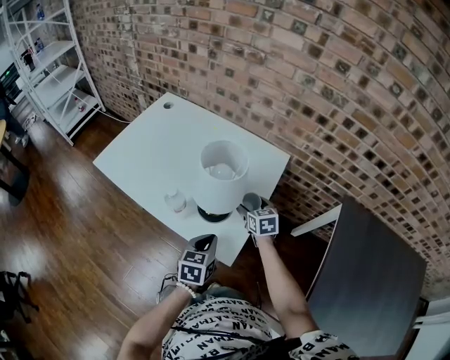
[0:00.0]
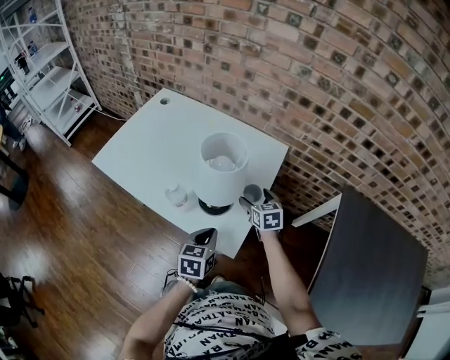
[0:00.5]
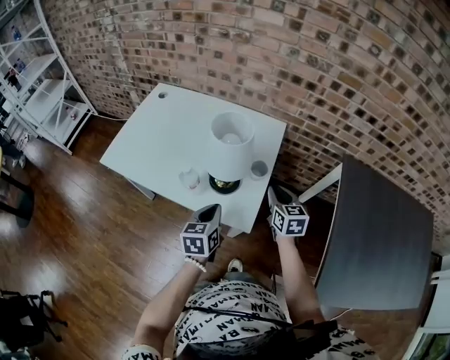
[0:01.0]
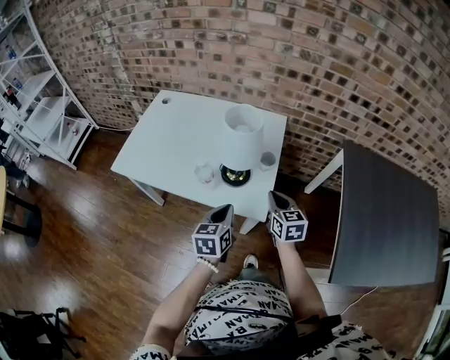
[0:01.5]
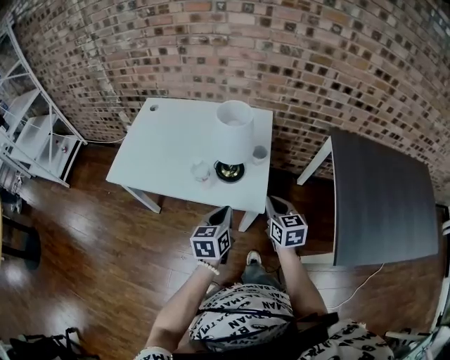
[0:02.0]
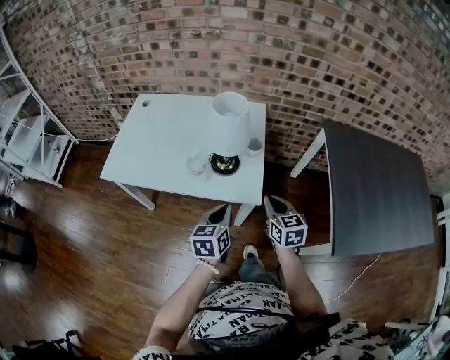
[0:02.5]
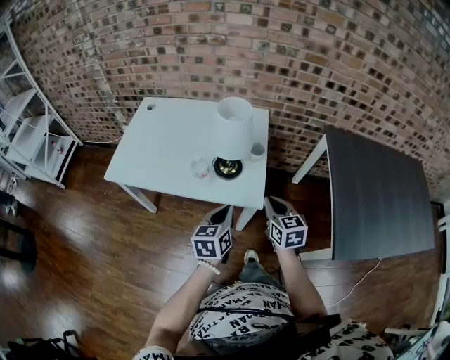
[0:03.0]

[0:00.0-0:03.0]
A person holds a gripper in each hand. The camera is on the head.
0.0 to 1.5 s: The right gripper goes approximately 25 cm backward and upward, swivels roughly 20 degrees, and closes up. Meanwhile the left gripper travels upward, backward and to the left by approximately 10 cm.
1.5 to 3.0 s: The right gripper travels backward by some 10 cm.

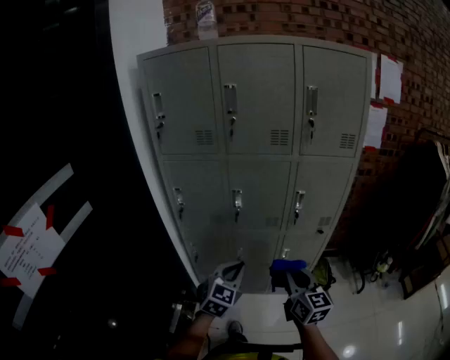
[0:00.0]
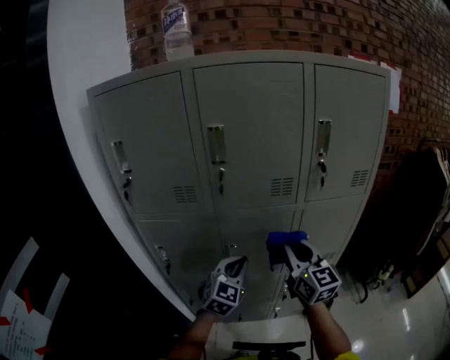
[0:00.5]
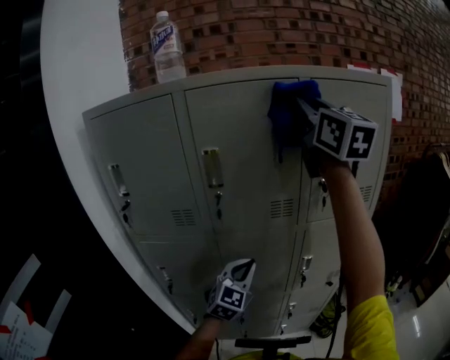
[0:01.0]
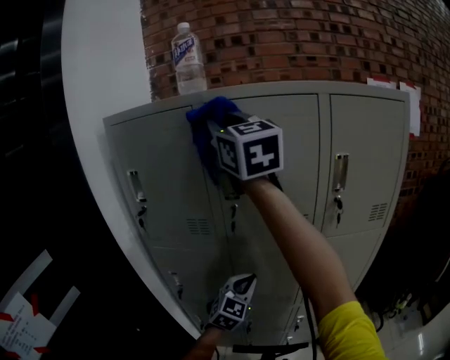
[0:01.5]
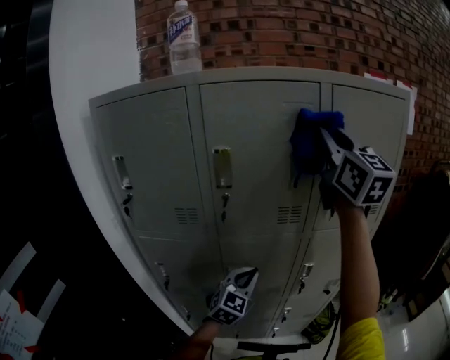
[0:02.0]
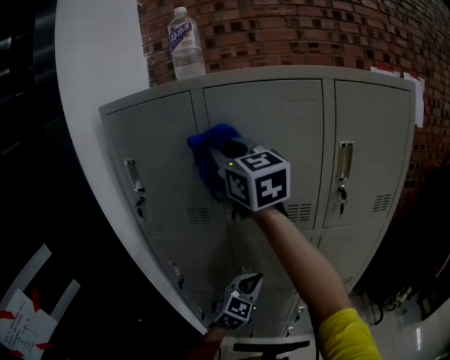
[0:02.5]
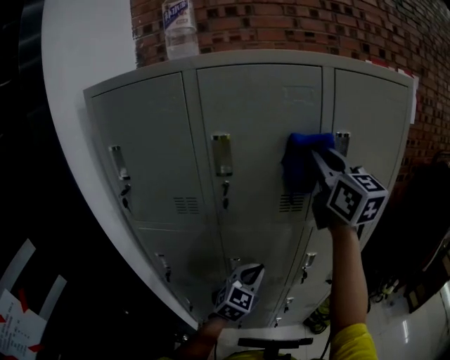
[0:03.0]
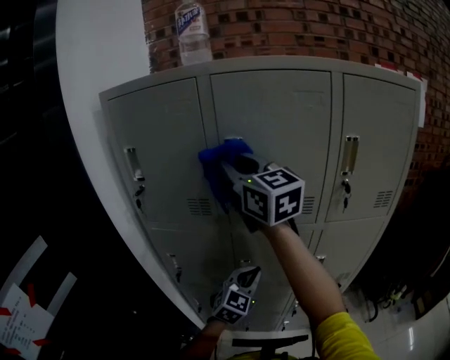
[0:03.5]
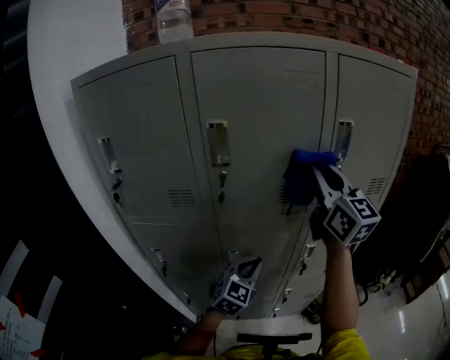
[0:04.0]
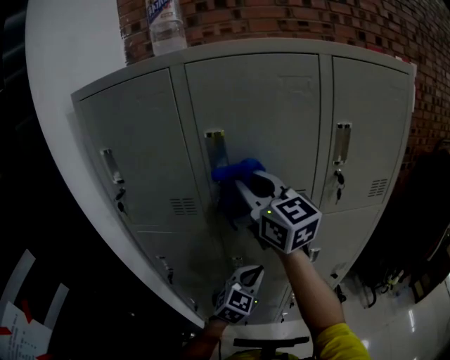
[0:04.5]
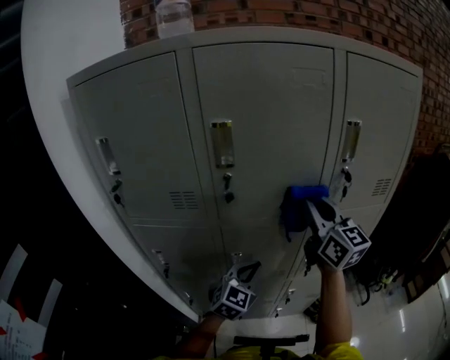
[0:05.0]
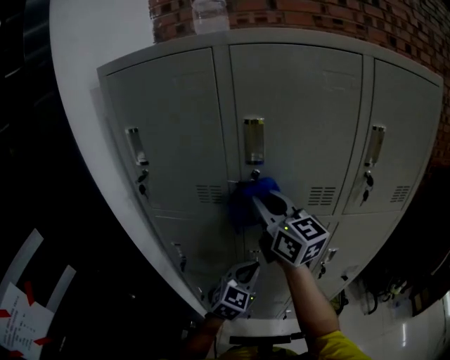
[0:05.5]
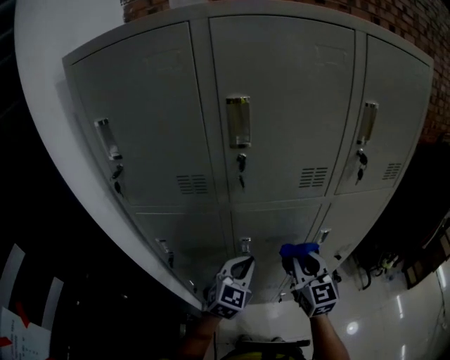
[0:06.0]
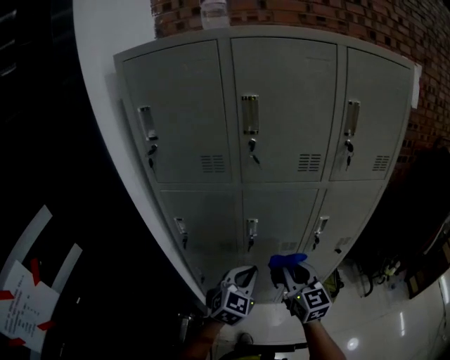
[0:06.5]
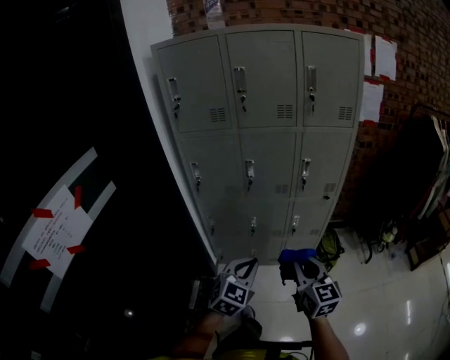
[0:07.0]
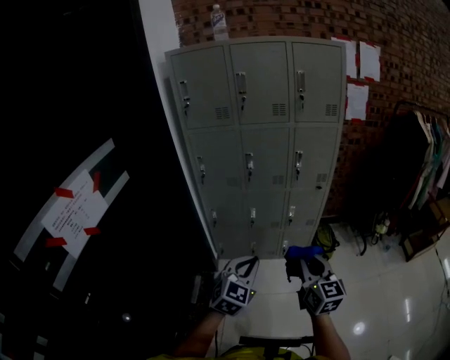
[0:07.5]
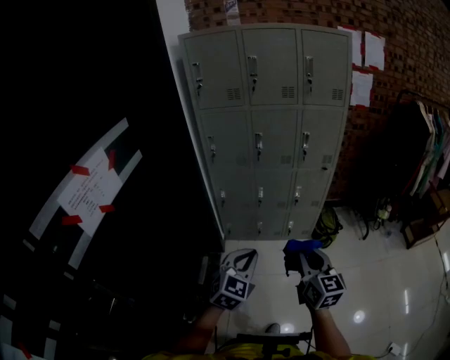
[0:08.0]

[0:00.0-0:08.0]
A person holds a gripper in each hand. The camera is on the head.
0.0 to 2.0 s: The right gripper heads upward and forward, covering about 60 cm, and turns by approximately 30 degrees. The left gripper is displaced forward by some 30 cm.
2.0 to 4.0 s: The right gripper goes left and right, about 25 cm each way, reversing 3 times.
4.0 to 6.0 s: The left gripper travels to the left by approximately 5 cm; the right gripper heads downward, covering some 30 cm, and turns by approximately 20 degrees.
6.0 to 8.0 s: The two grippers travel together, backward, approximately 70 cm.

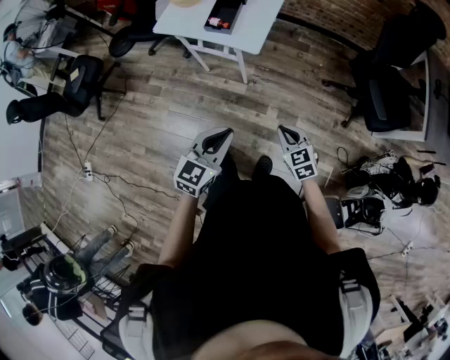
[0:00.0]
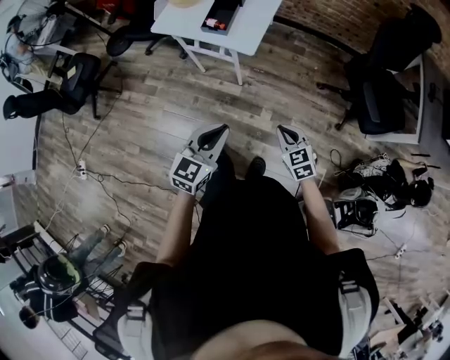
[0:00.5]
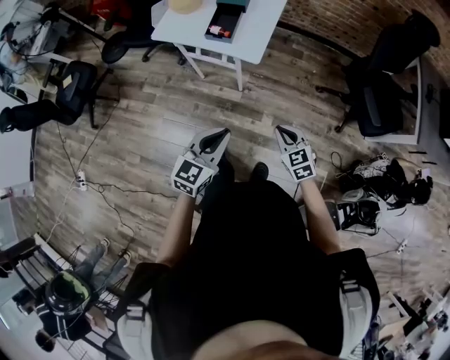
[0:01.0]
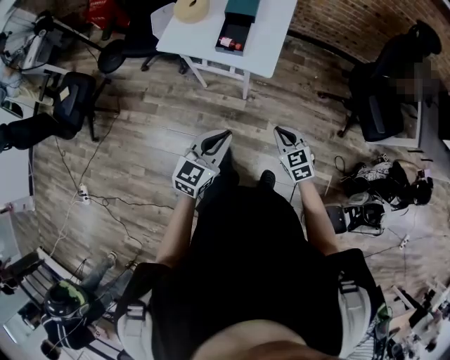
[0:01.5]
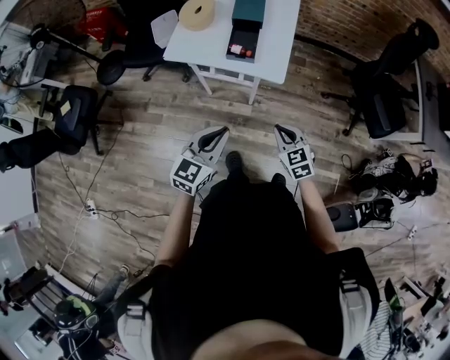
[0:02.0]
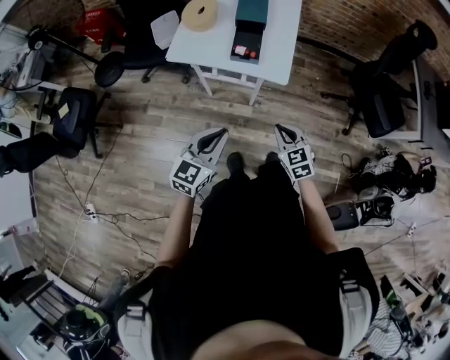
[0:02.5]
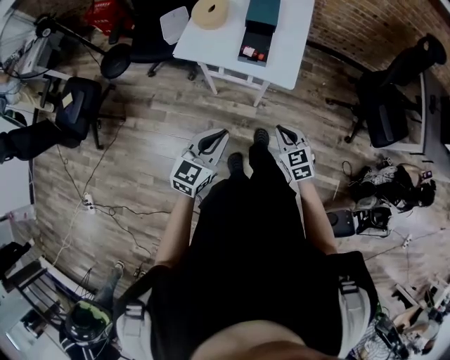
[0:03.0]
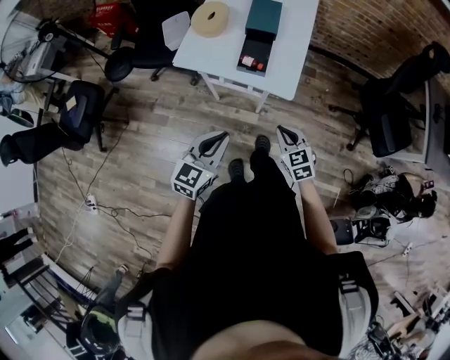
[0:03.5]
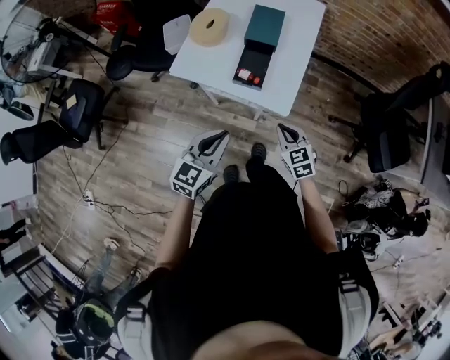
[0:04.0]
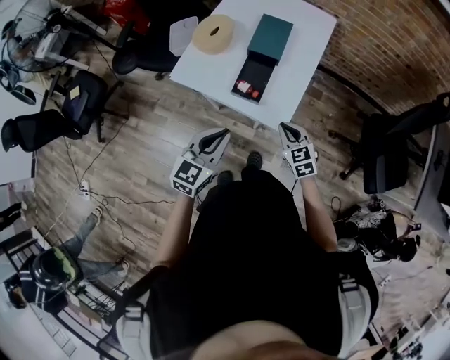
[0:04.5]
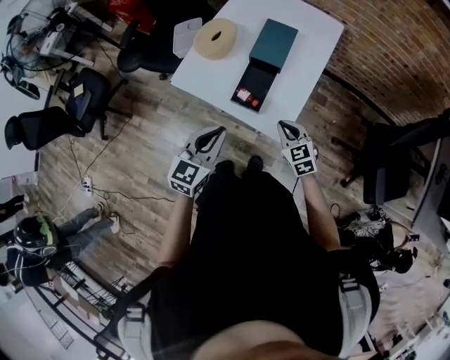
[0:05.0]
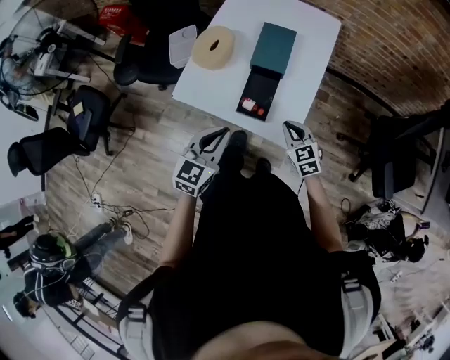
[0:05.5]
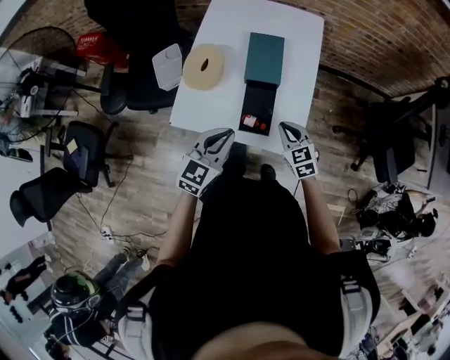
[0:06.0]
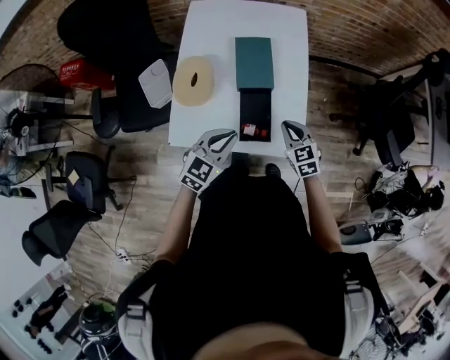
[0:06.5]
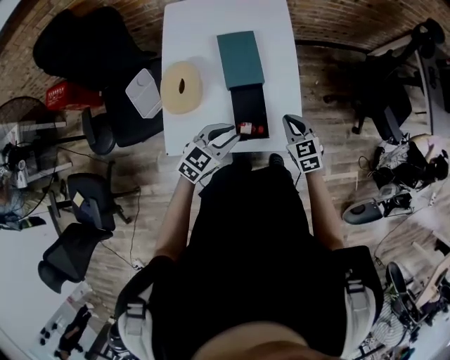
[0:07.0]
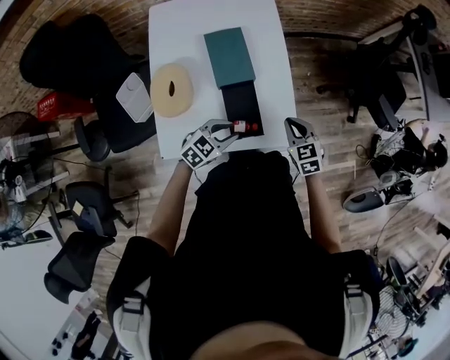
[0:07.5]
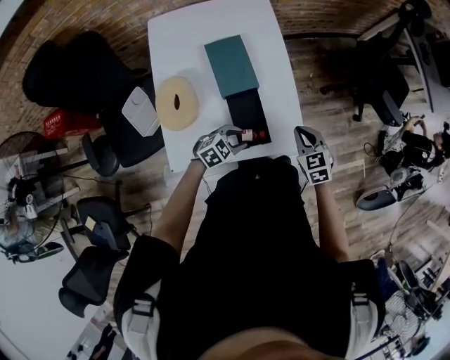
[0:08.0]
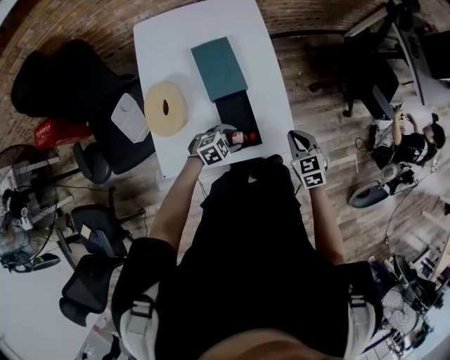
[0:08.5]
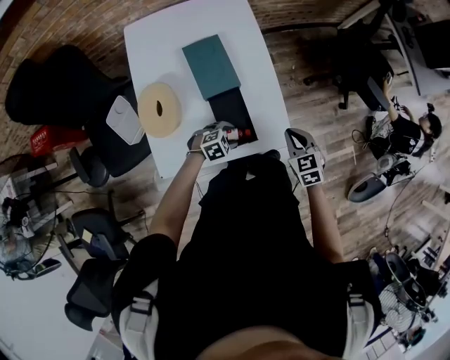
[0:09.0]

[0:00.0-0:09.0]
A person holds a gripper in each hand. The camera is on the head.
0.0 to 2.0 s: Both grippers travel together to the left and forward, approximately 25 cm.
2.0 to 4.5 s: The two grippers go approximately 25 cm forward.
4.5 to 7.0 s: The right gripper ends up roughly 15 cm from where it was, and changes its angle by about 30 degrees. The left gripper ends up about 25 cm from where it was, and swivels roughly 50 degrees.
7.0 to 9.0 s: The right gripper shifts by some 10 cm. The left gripper moves downward, roughly 20 cm, rotates approximately 50 degrees, and opens its fingers.

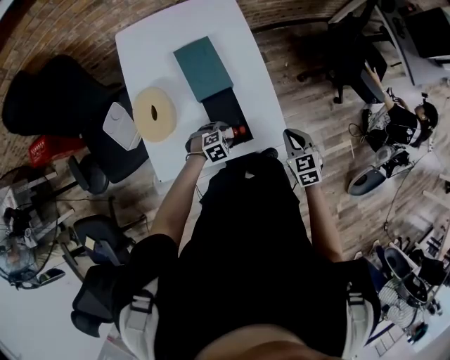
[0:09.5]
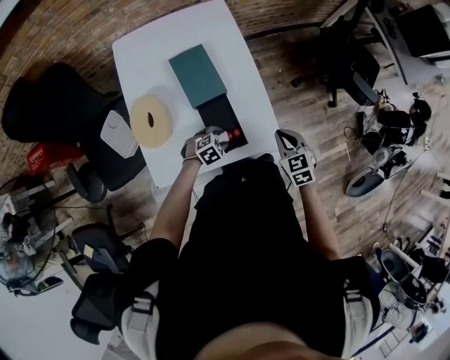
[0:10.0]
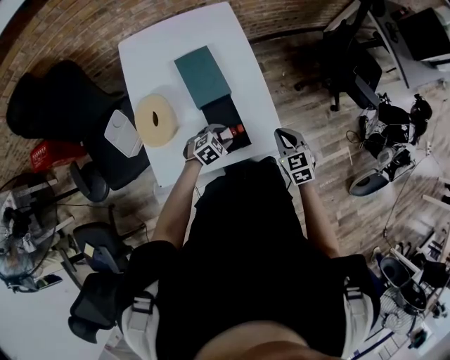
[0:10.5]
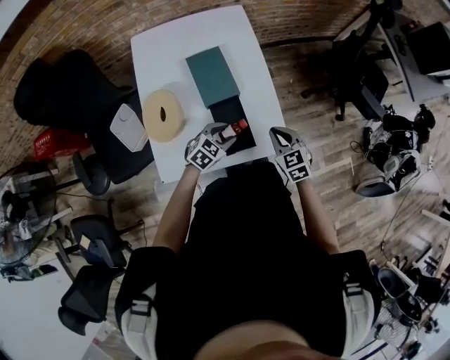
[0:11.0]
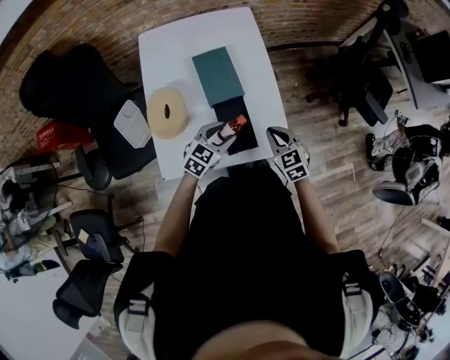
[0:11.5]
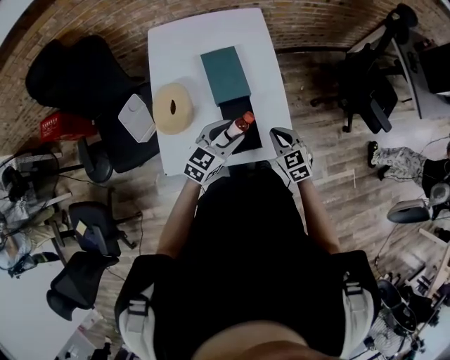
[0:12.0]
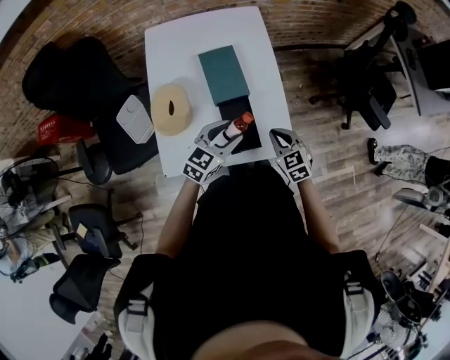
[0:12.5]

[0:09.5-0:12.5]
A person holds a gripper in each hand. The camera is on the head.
9.5 to 11.0 s: The right gripper goes about 5 cm to the left. The left gripper shifts roughly 10 cm upward, and rotates roughly 30 degrees.
11.0 to 12.5 s: The left gripper is displaced upward by some 10 cm, and turns by approximately 20 degrees.

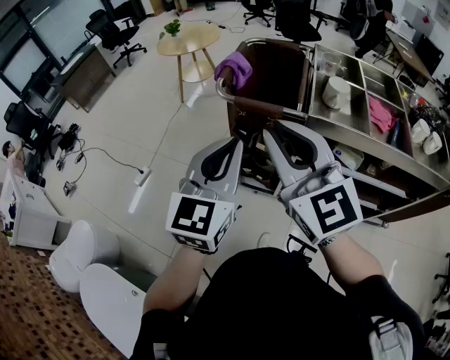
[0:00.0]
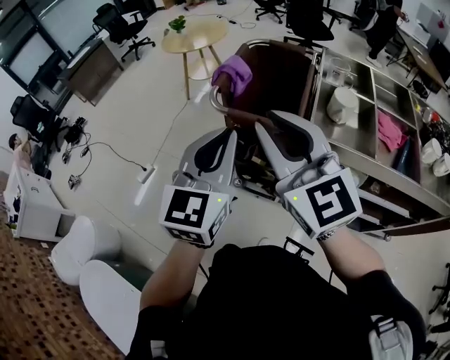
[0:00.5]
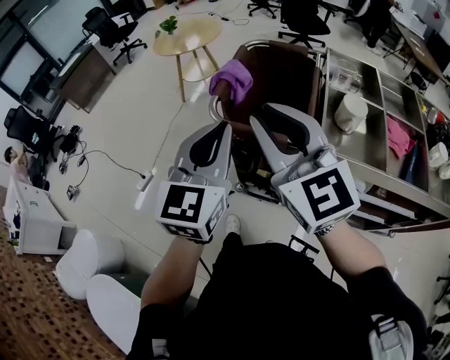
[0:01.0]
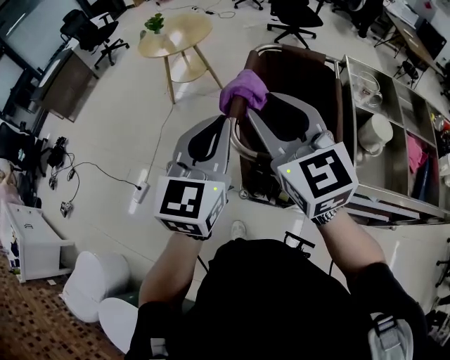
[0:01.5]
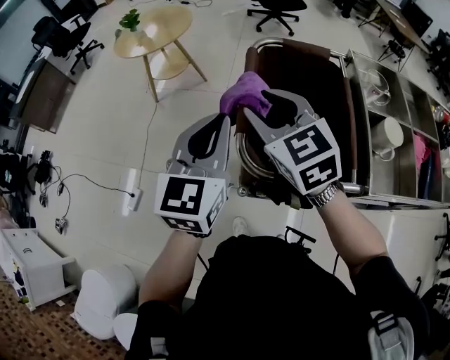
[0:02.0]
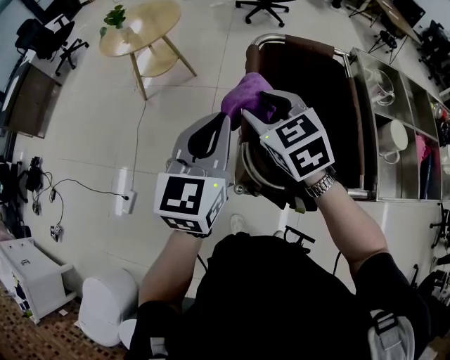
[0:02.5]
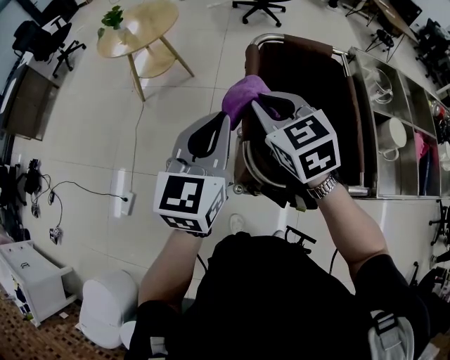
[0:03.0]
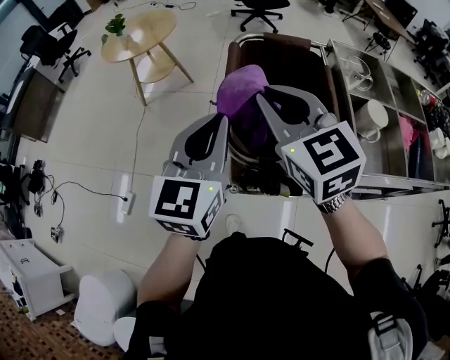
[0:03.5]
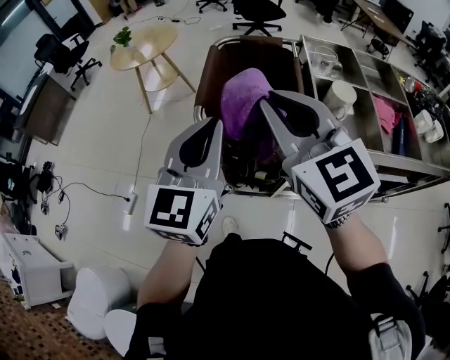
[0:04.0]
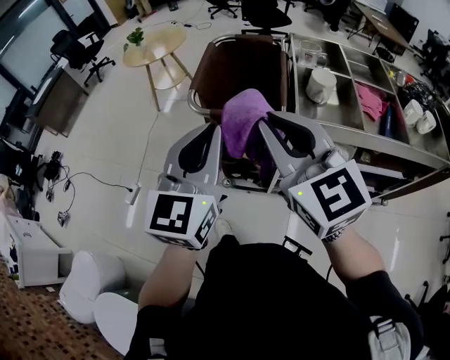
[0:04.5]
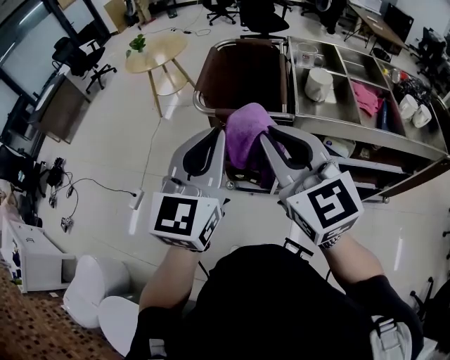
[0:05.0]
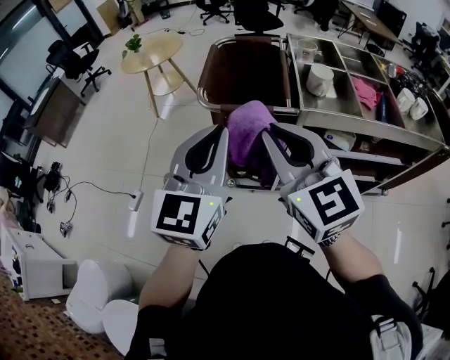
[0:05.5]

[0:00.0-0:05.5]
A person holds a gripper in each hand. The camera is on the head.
0.0 to 2.0 s: The two grippers travel together, forward, approximately 50 cm. The right gripper turns by about 20 degrees, and opens.
2.0 to 3.5 s: The right gripper heads upward and backward, covering some 10 cm, and closes up.
3.5 to 5.5 s: Both grippers travel together backward, some 35 cm.
